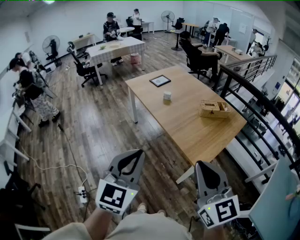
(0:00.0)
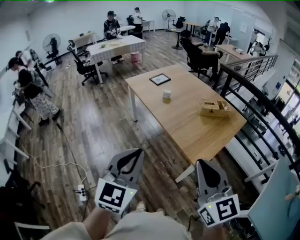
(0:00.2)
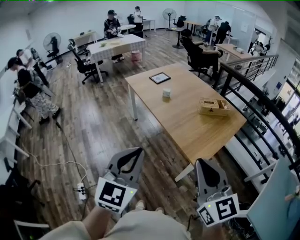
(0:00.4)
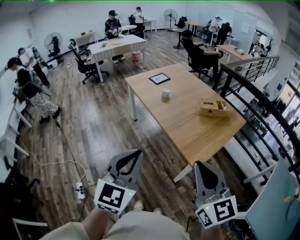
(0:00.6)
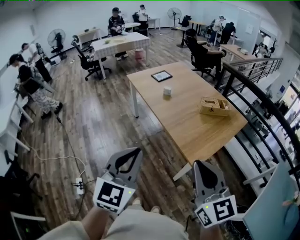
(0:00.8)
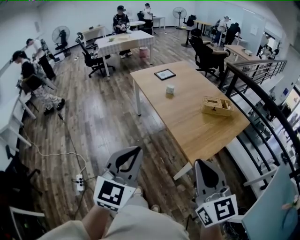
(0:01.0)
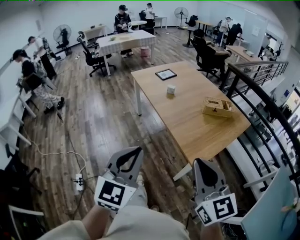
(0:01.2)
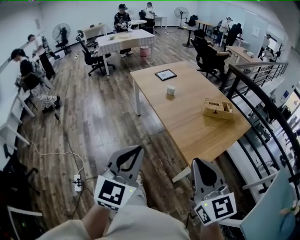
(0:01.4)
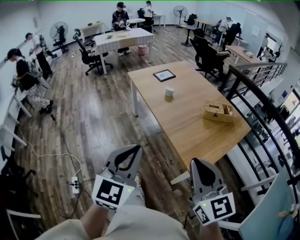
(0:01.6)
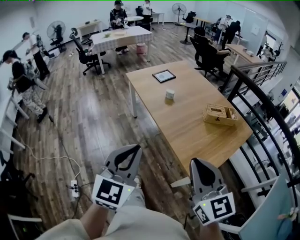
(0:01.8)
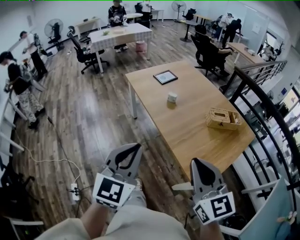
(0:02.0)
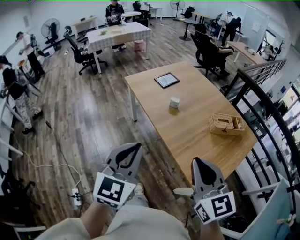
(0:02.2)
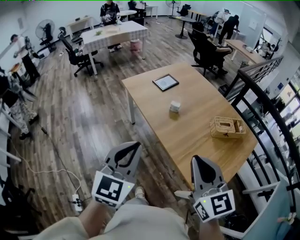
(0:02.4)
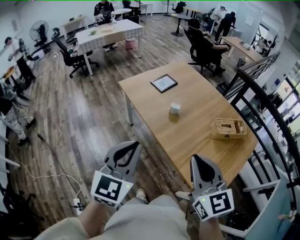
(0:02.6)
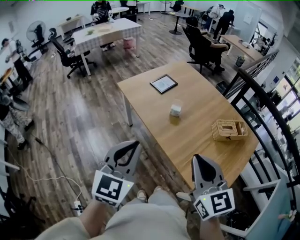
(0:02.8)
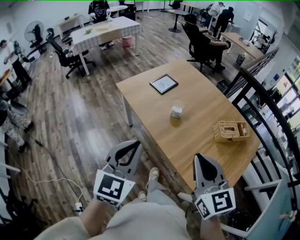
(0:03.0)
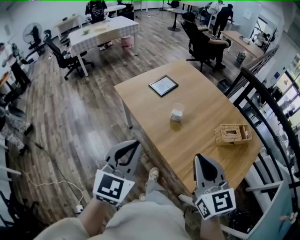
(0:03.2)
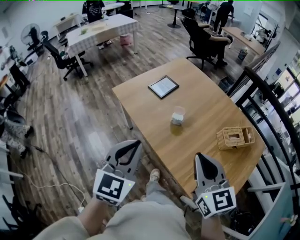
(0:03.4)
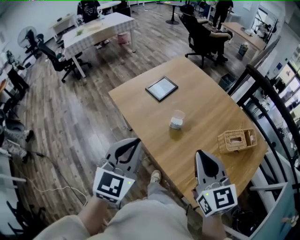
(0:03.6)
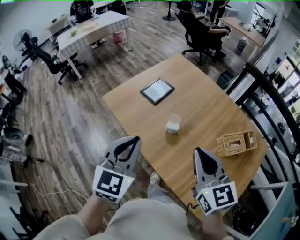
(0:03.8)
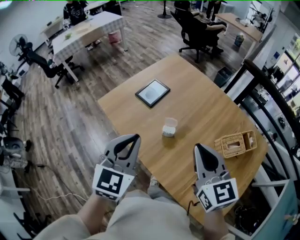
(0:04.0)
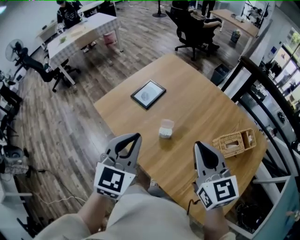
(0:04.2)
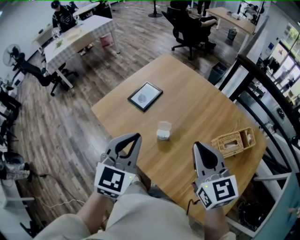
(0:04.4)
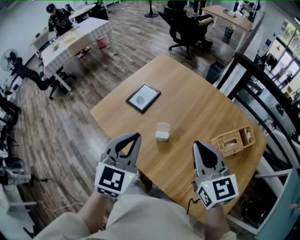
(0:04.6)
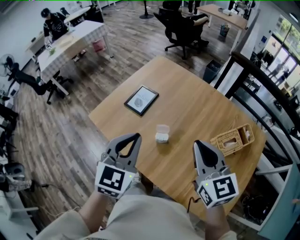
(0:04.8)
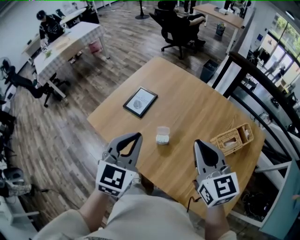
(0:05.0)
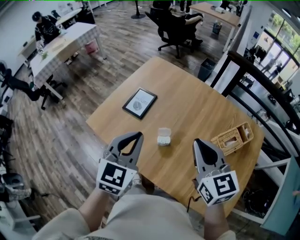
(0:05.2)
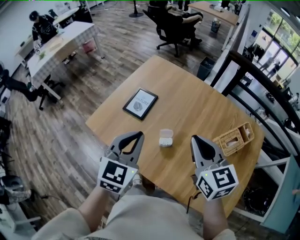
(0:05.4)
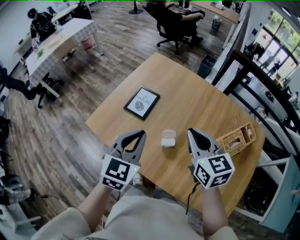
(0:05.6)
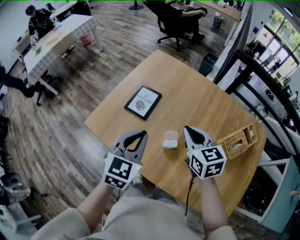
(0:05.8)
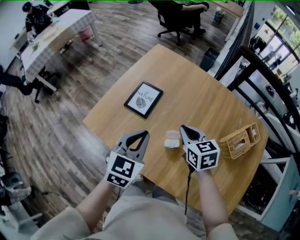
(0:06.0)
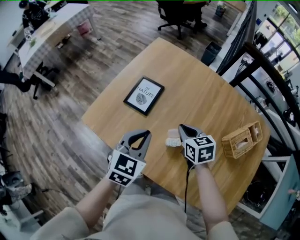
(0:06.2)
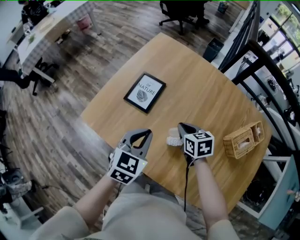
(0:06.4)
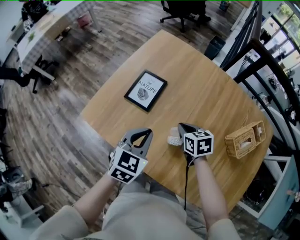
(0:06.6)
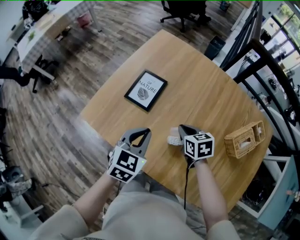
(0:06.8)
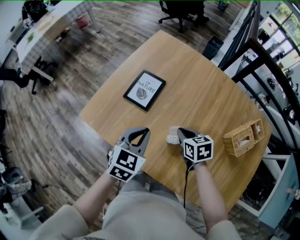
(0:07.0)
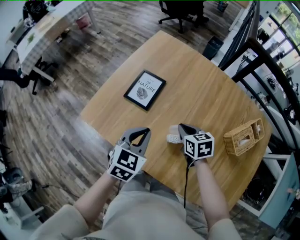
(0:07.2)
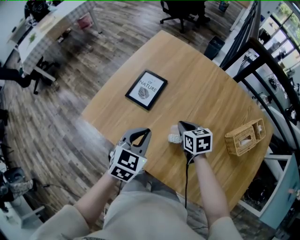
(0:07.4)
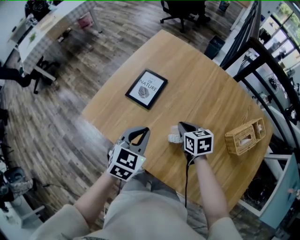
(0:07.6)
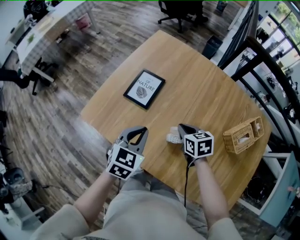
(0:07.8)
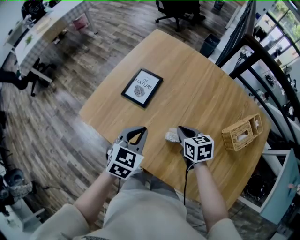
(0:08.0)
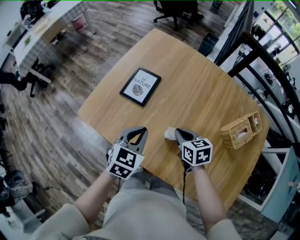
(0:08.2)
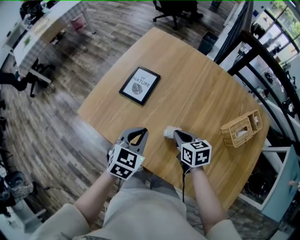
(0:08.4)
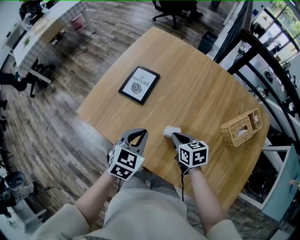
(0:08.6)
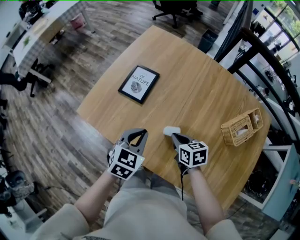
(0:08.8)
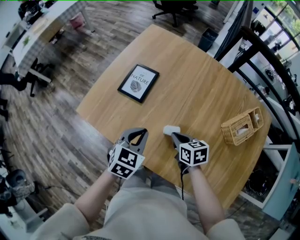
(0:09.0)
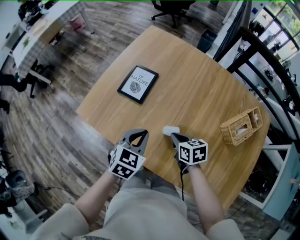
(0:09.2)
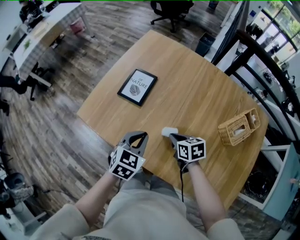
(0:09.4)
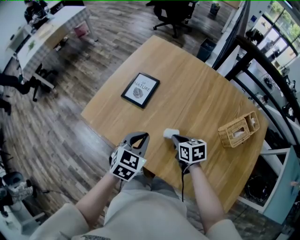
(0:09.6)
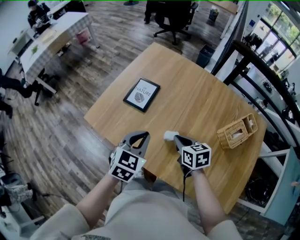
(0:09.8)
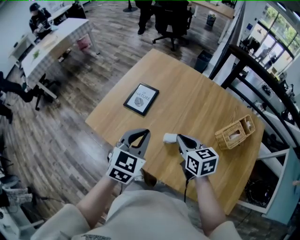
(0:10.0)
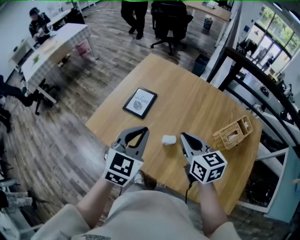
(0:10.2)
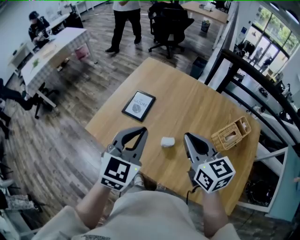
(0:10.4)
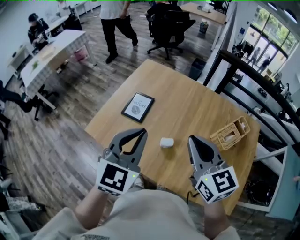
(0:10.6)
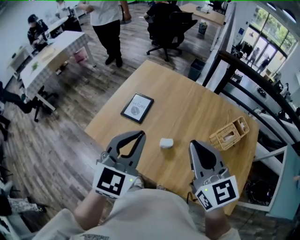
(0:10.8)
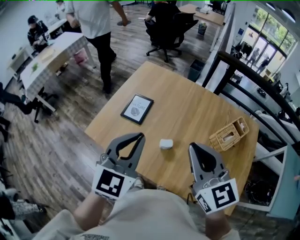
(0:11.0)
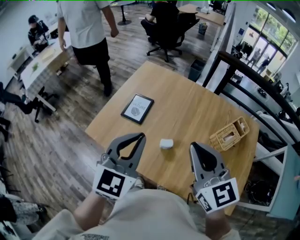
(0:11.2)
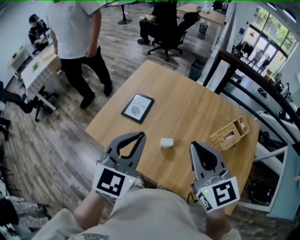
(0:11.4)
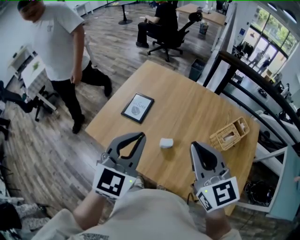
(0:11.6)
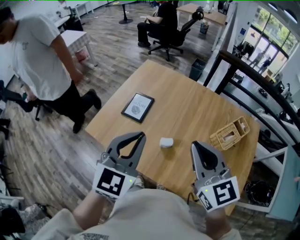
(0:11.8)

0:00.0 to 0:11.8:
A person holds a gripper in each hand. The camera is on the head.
0:00.0 to 0:01.4: The left gripper moves about 5 cm. The right gripper ends up approximately 5 cm from where it was.
0:01.4 to 0:03.0: Both grippers are carried forward, about 50 cm.
0:03.0 to 0:04.4: The grippers both shift forward by some 30 cm.
0:04.4 to 0:06.0: Both grippers move forward, downward and to the left, some 20 cm. The right gripper changes its angle by some 20 degrees.
0:06.0 to 0:07.4: The right gripper moves downward, some 10 cm, while the left gripper is displaced downward by roughly 5 cm.
0:07.4 to 0:08.8: The right gripper is displaced backward by about 10 cm.
0:08.8 to 0:10.4: The two grippers go roughly 25 cm upward. The left gripper changes its angle by approximately 20 degrees; the right gripper swivels some 30 degrees.
0:10.4 to 0:11.8: The left gripper changes place by about 5 cm, while the right gripper moves upward, approximately 5 cm.

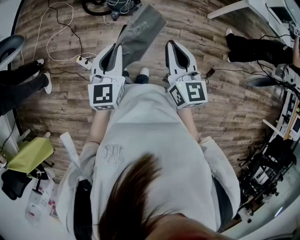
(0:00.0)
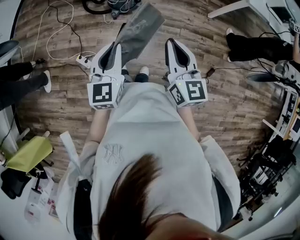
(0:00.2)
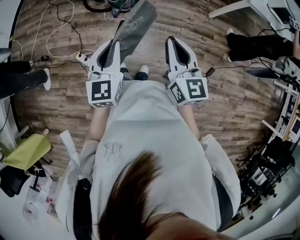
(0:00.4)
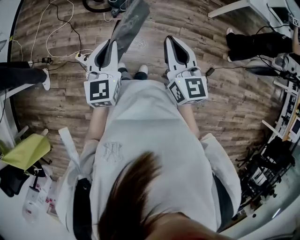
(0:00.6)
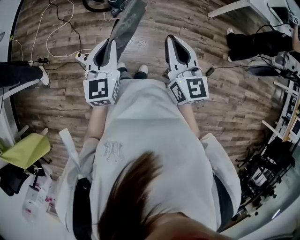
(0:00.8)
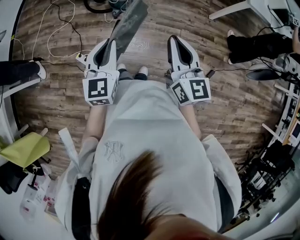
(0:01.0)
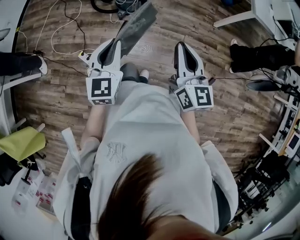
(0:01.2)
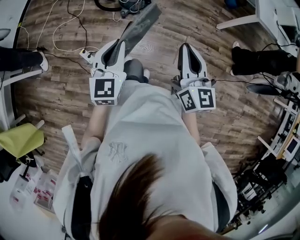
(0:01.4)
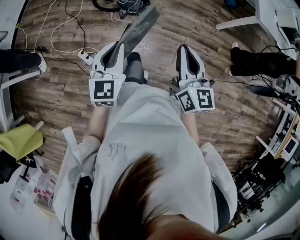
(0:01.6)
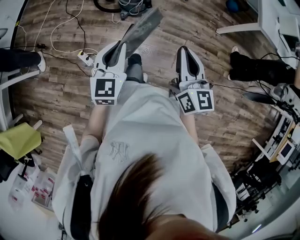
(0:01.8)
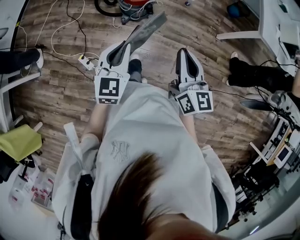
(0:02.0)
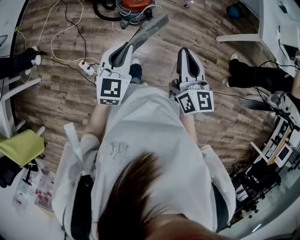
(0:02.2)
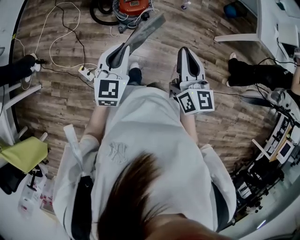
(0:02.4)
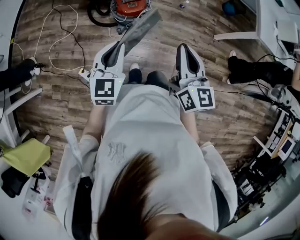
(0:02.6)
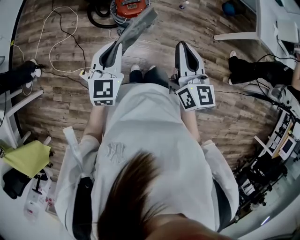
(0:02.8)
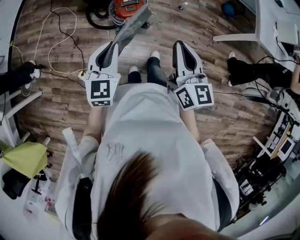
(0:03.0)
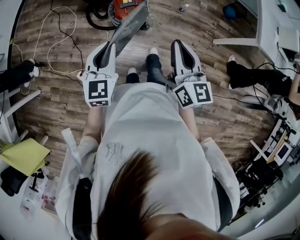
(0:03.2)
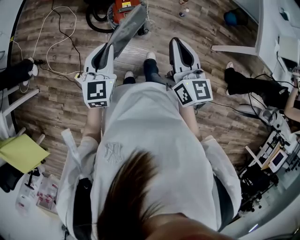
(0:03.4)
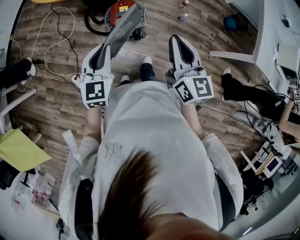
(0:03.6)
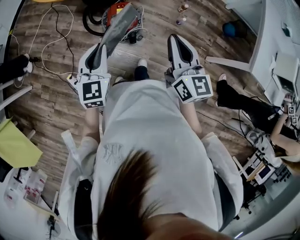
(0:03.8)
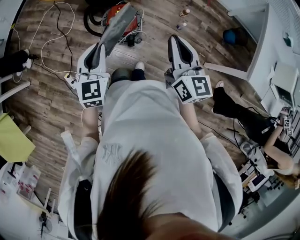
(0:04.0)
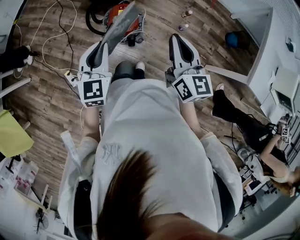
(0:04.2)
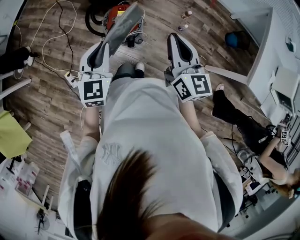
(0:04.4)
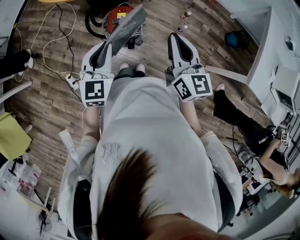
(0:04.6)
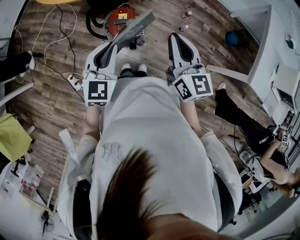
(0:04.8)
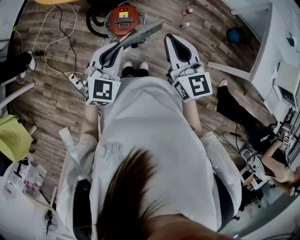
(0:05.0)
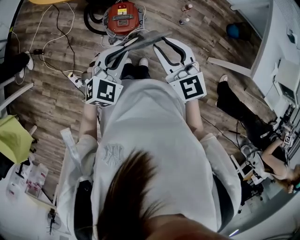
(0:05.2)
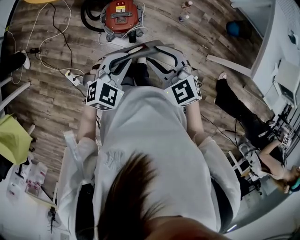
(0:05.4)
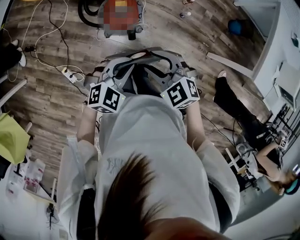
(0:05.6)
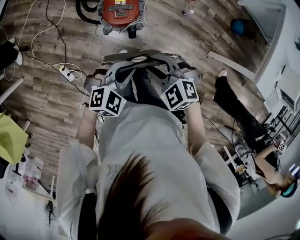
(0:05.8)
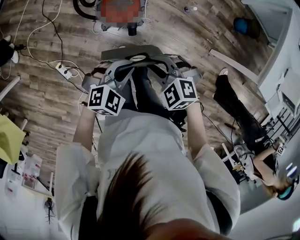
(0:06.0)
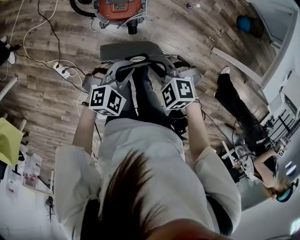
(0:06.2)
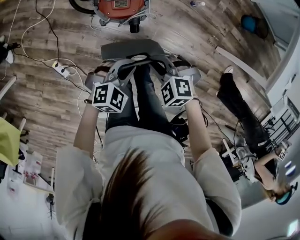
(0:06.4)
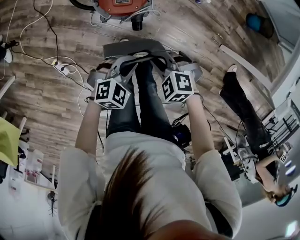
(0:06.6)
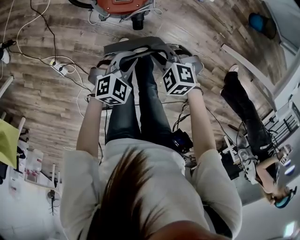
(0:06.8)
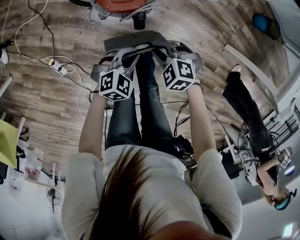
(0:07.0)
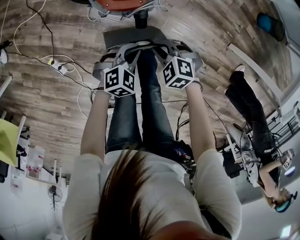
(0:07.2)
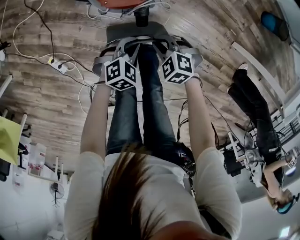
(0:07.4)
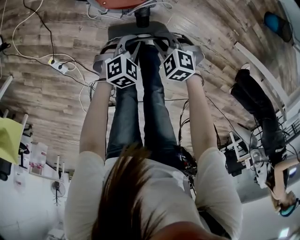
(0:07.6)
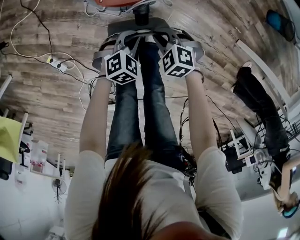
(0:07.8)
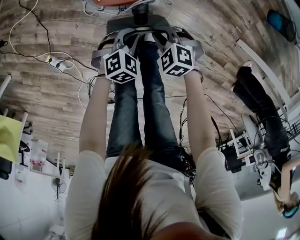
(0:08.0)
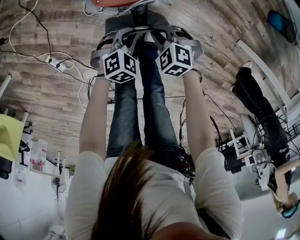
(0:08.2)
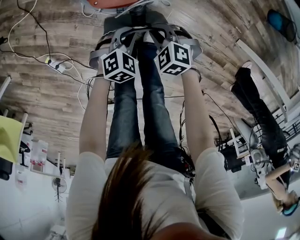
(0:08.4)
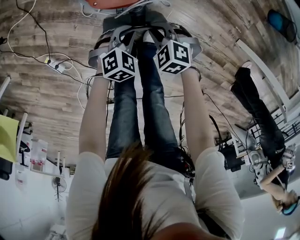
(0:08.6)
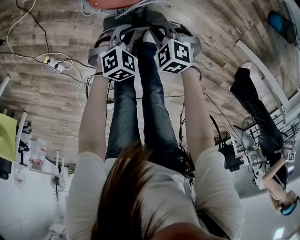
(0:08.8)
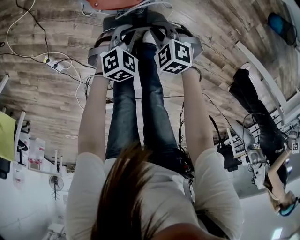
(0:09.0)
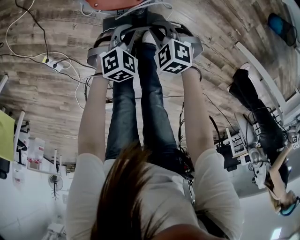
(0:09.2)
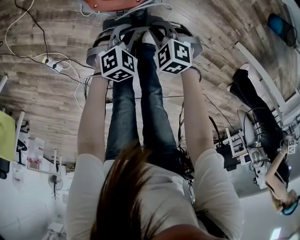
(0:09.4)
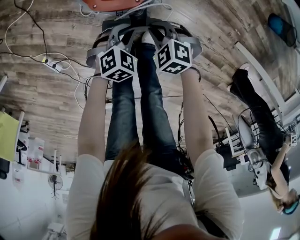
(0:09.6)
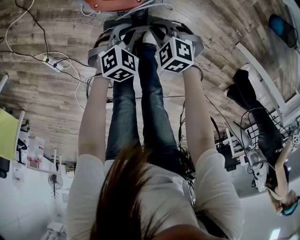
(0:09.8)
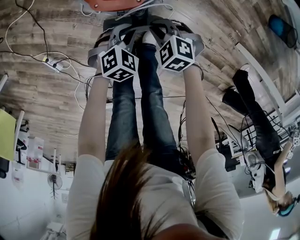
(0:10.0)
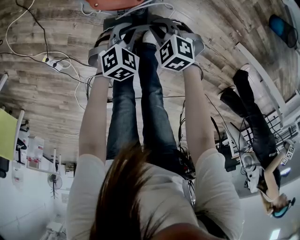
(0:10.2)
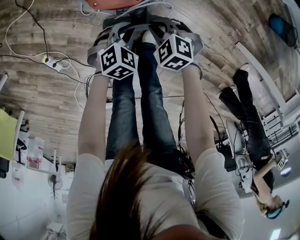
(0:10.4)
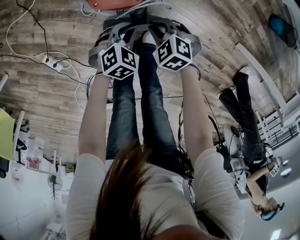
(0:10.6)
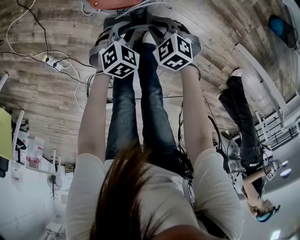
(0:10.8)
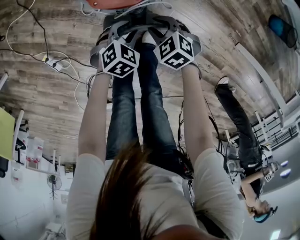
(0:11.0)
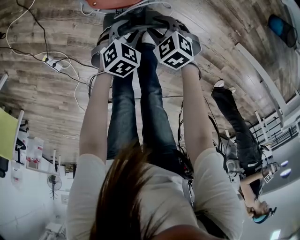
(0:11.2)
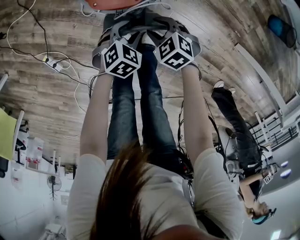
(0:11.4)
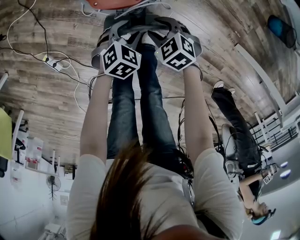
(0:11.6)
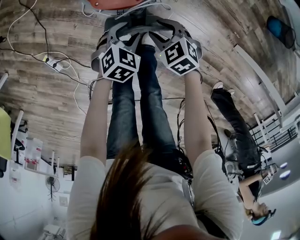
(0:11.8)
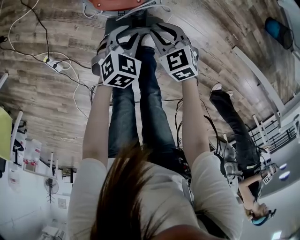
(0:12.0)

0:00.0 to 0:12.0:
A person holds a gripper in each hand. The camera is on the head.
0:00.0 to 0:01.6: The right gripper moves some 5 cm.
0:01.6 to 0:03.0: The two grippers go approximately 25 cm forward.
0:03.0 to 0:04.4: Both grippers move forward and to the right, approximately 20 cm.
0:04.4 to 0:06.0: Both grippers move downward, about 20 cm. The left gripper rotates approximately 60 degrees. The right gripper tips its fingers downward by roughly 50 degrees, and opens.
0:06.0 to 0:07.6: Both grippers move downward, about 35 cm.
0:07.6 to 0:09.0: The right gripper ends up approximately 5 cm from where it was. The left gripper shifts by about 5 cm.
0:09.0 to 0:10.4: The grippers make only small movements.
0:10.4 to 0:12.0: The right gripper travels upward by some 5 cm, turns by some 30 degrees, and opens, then closes again.
